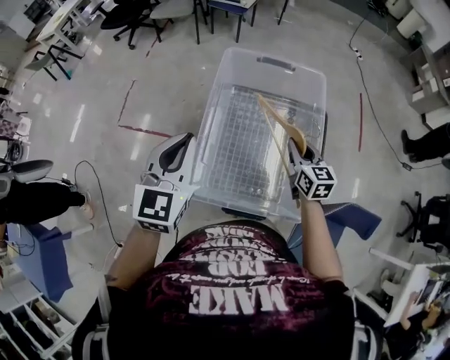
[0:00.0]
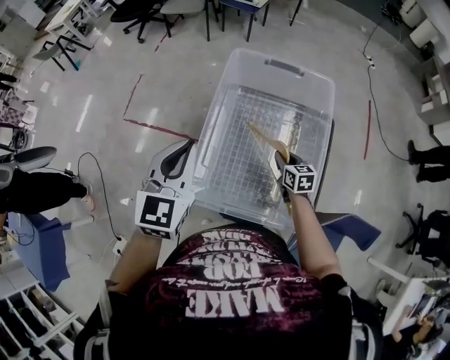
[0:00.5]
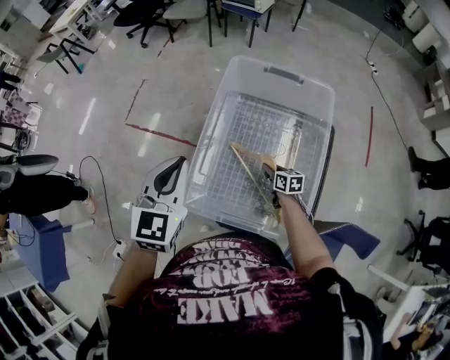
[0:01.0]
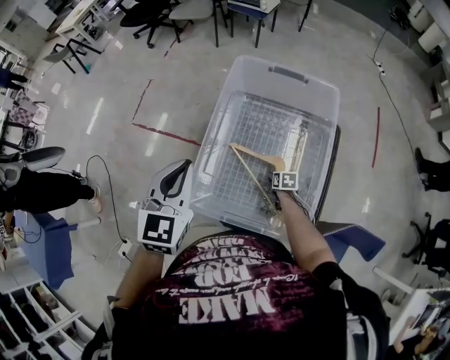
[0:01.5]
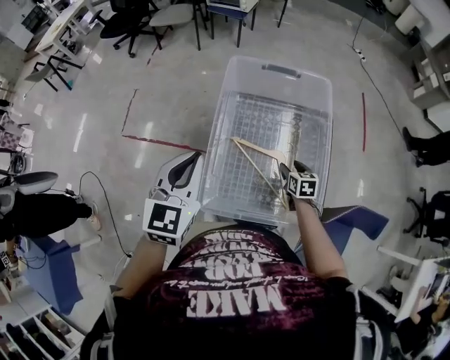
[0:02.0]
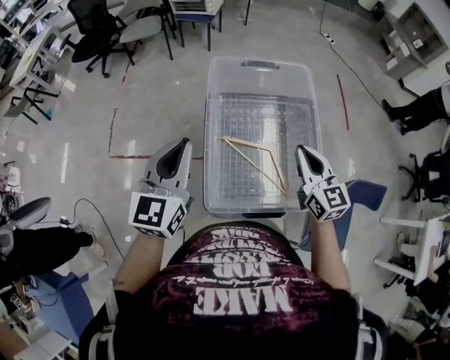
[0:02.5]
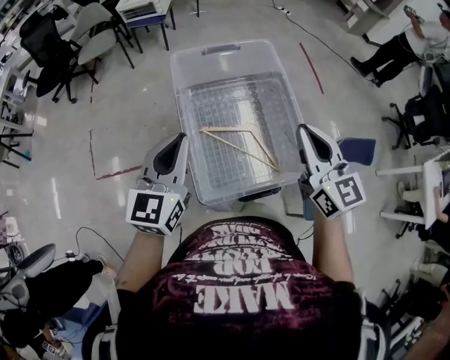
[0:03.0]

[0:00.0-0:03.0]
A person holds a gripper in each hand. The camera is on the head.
0:00.0 to 0:01.5: The right gripper goes about 30 cm downward, angles its fingers downward, by roughly 40 degrees, and opens.
0:01.5 to 0:03.0: The left gripper turns by roughly 30 degrees, while the right gripper is displaced upward by approximately 50 cm, points its fingers about 60 degrees further upward, and closes up.

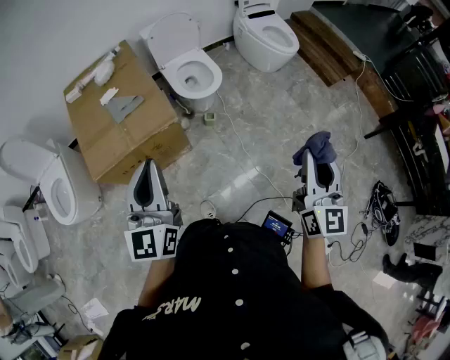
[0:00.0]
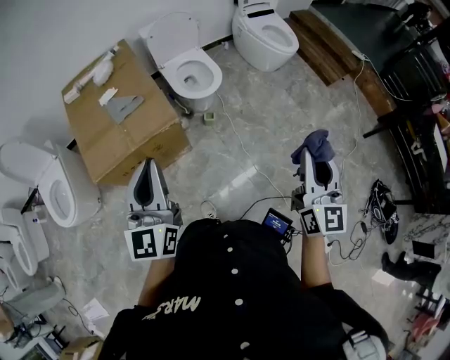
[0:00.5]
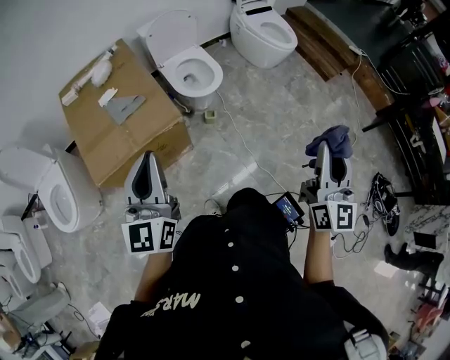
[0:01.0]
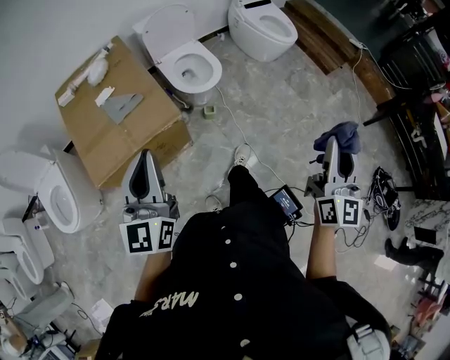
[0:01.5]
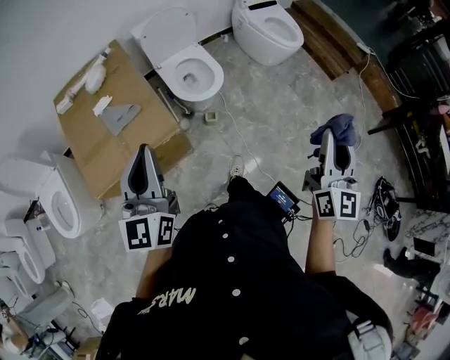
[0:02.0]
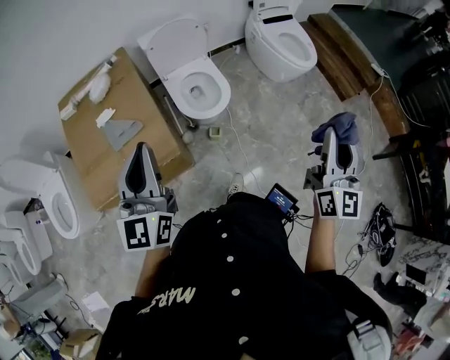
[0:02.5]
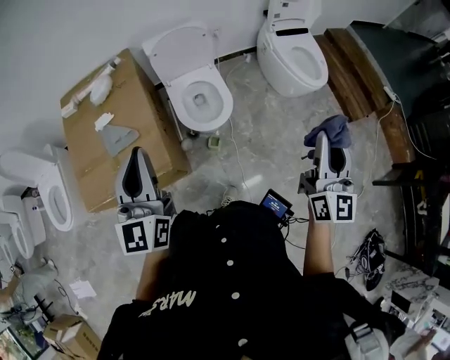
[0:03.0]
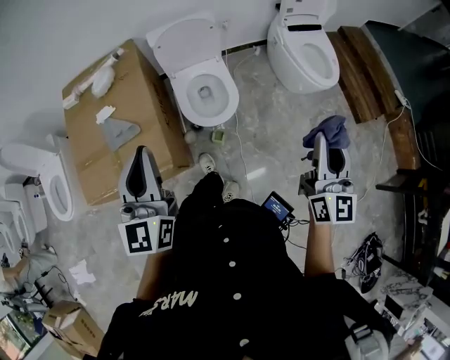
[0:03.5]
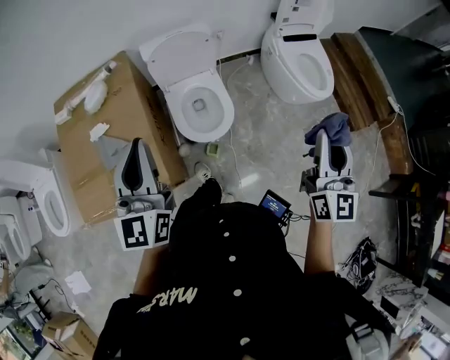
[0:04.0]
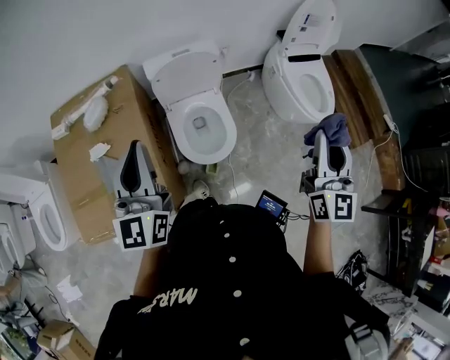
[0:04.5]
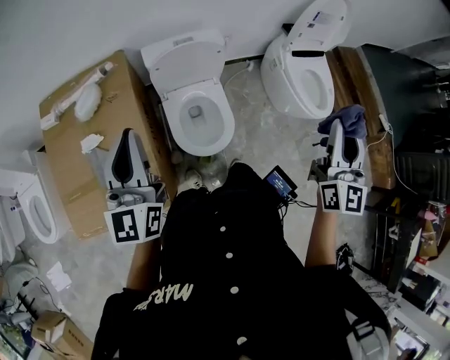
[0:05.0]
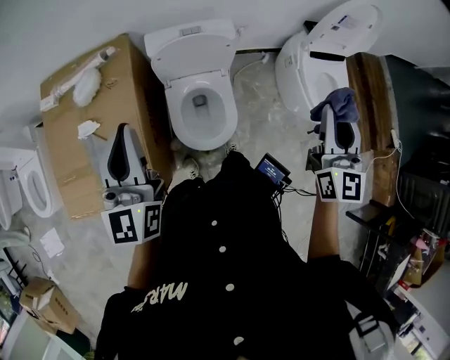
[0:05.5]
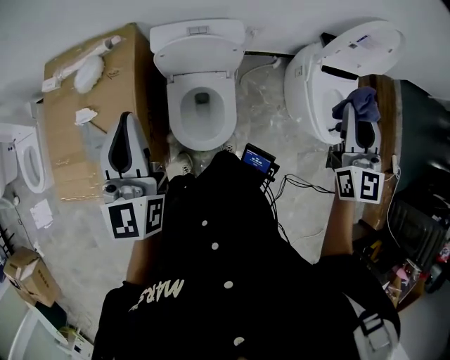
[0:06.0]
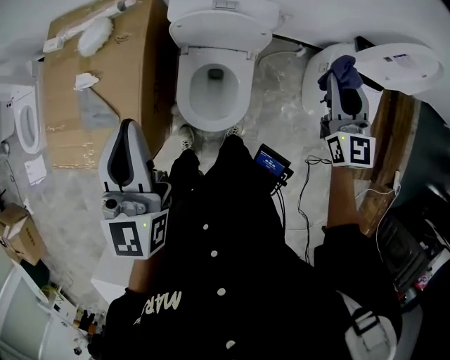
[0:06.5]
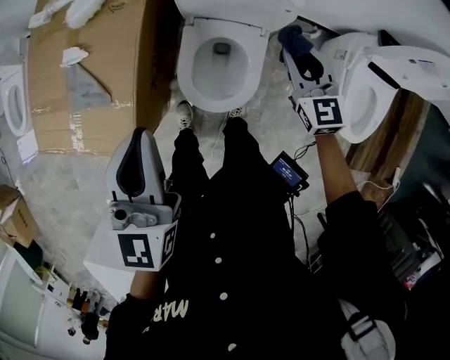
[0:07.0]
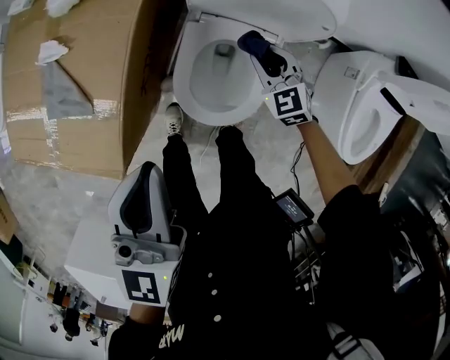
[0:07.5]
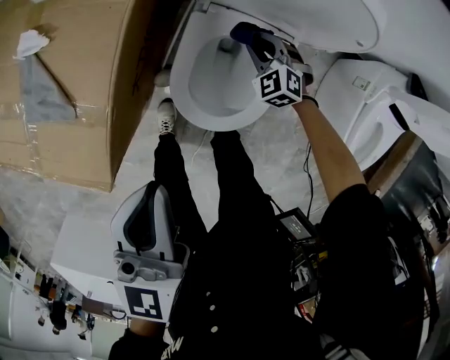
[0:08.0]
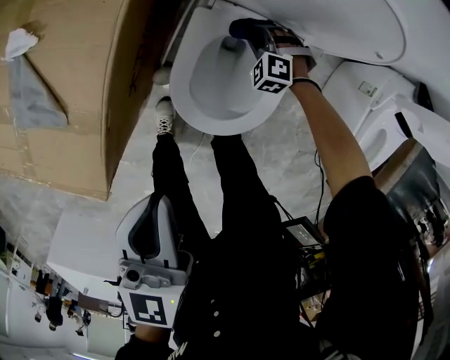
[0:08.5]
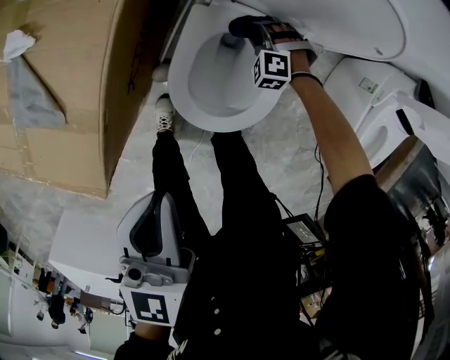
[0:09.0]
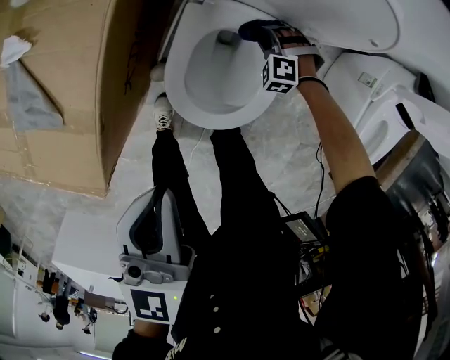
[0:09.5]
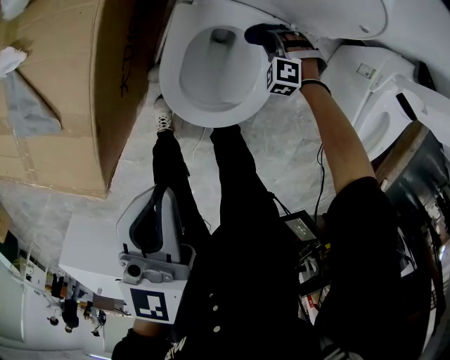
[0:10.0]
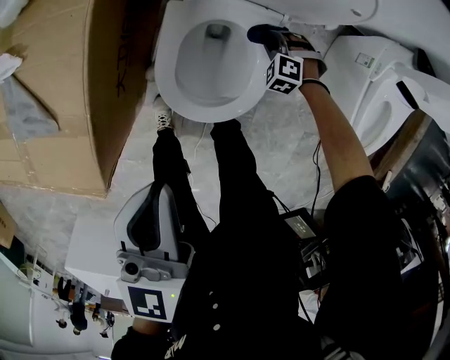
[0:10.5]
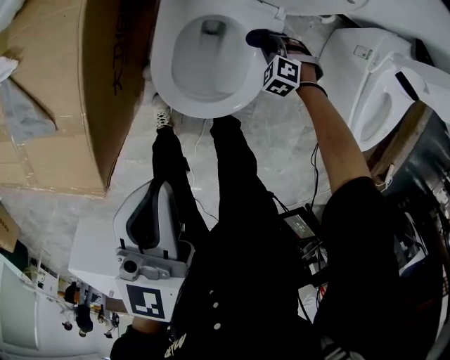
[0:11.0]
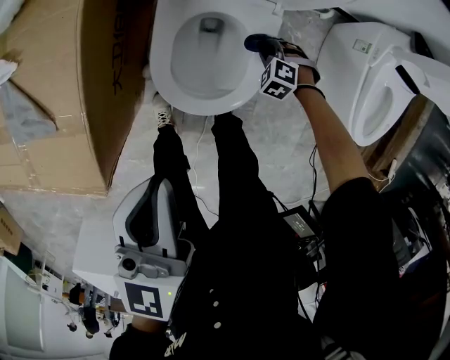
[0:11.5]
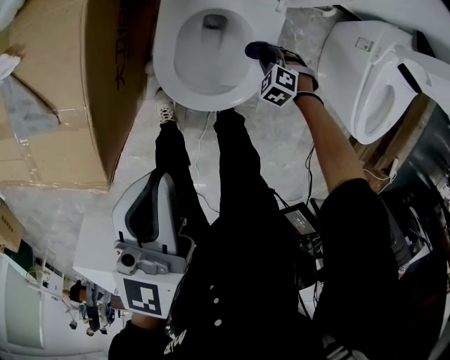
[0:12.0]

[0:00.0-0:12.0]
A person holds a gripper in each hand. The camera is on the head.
0:00.0 to 0:02.0: The two grippers go roughly 15 cm forward.
0:02.0 to 0:04.0: The grippers both shift forward by roughly 35 cm.
0:04.0 to 0:06.0: The left gripper travels forward by roughly 25 cm; the right gripper shifts roughly 40 cm forward, and turns by approximately 20 degrees.
0:06.0 to 0:08.0: The left gripper travels downward by some 25 cm, and rotates approximately 30 degrees. Meanwhile the right gripper is displaced downward by about 60 cm, and tips its fingers downward by approximately 50 degrees.
0:08.0 to 0:10.0: The right gripper is displaced downward and to the right by some 15 cm, and turns by about 30 degrees.
0:10.0 to 0:12.0: The right gripper moves some 15 cm, and swivels roughly 30 degrees.

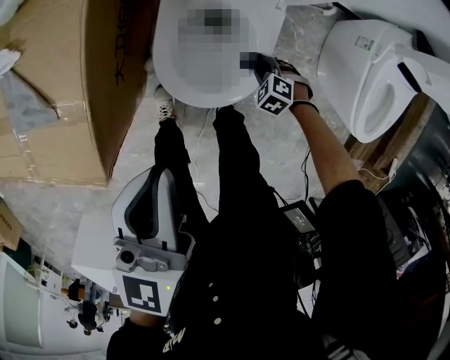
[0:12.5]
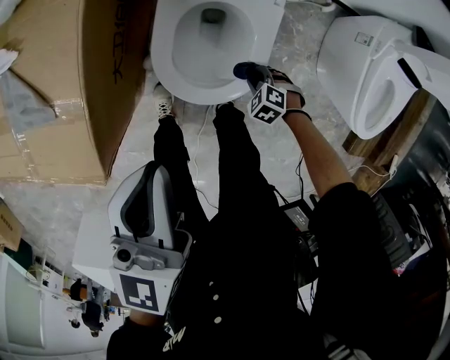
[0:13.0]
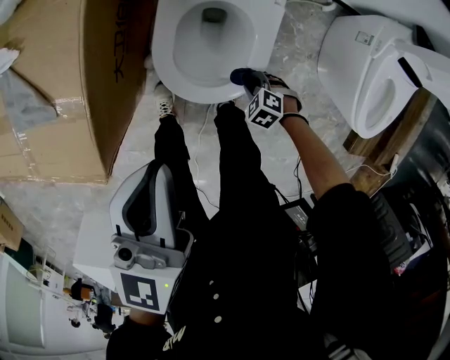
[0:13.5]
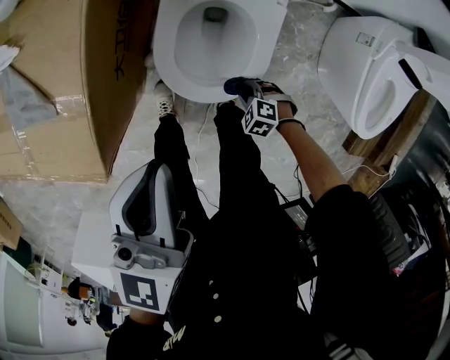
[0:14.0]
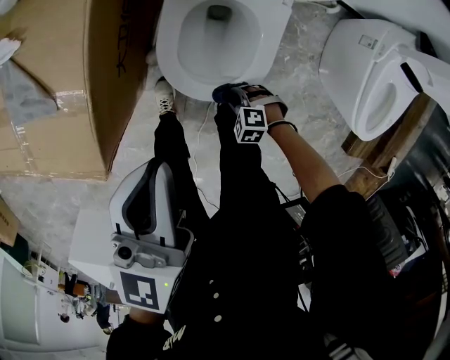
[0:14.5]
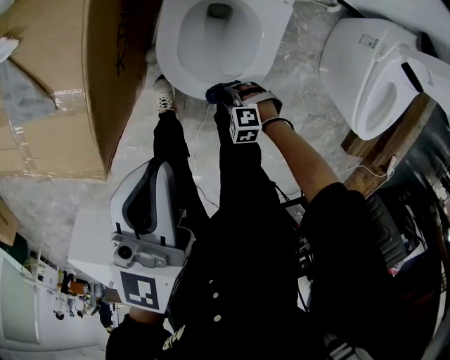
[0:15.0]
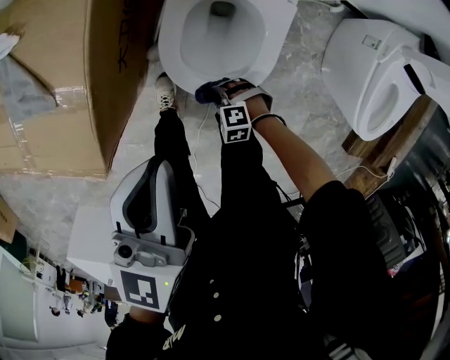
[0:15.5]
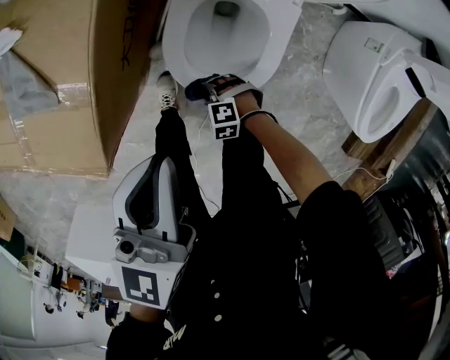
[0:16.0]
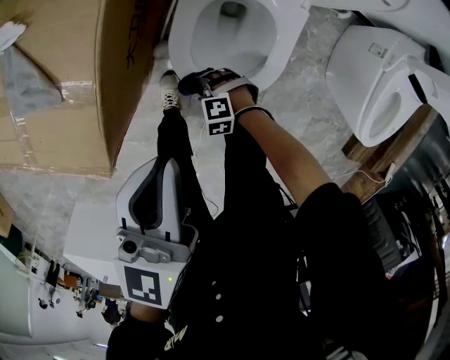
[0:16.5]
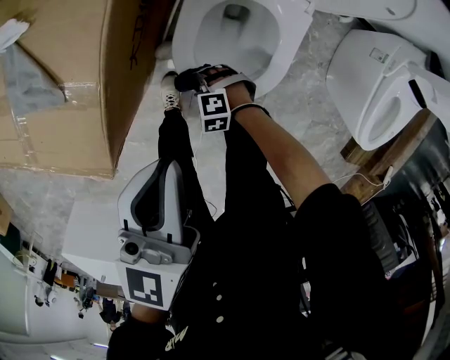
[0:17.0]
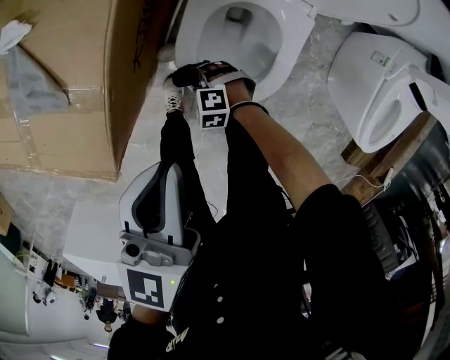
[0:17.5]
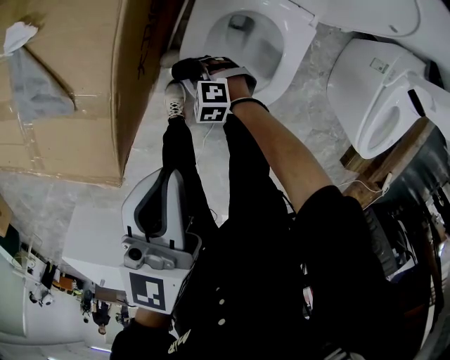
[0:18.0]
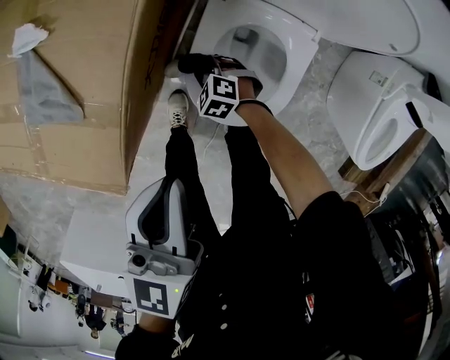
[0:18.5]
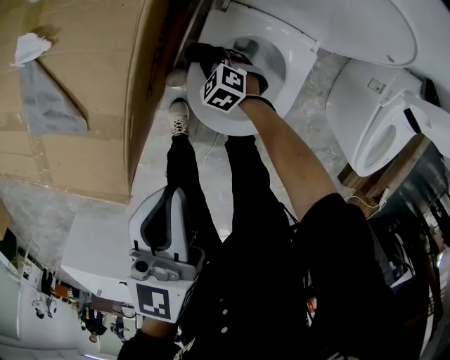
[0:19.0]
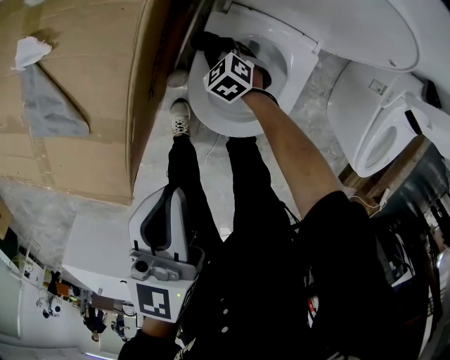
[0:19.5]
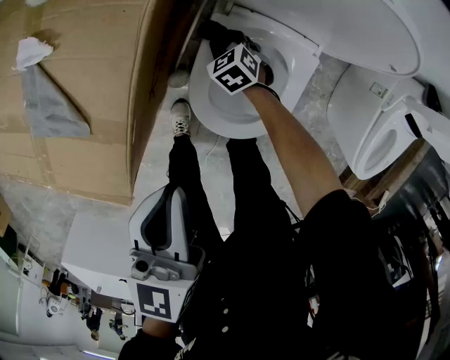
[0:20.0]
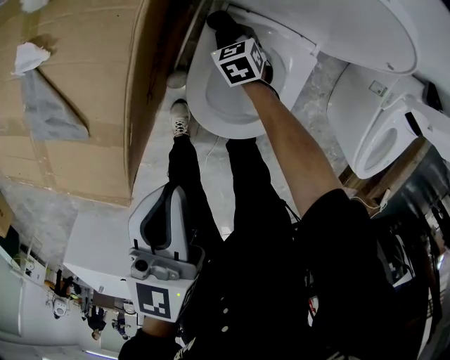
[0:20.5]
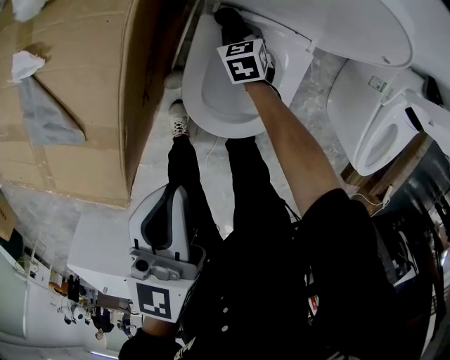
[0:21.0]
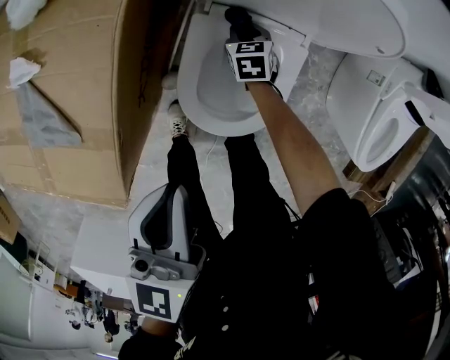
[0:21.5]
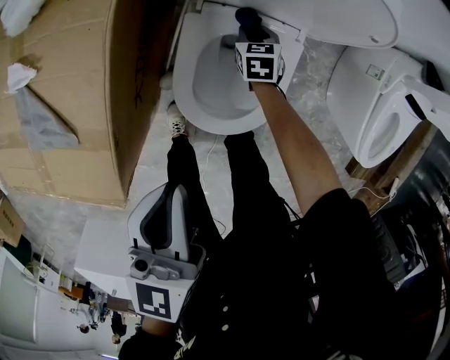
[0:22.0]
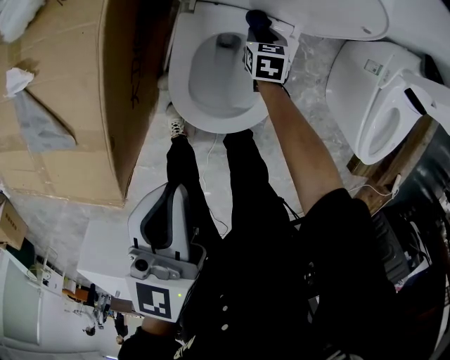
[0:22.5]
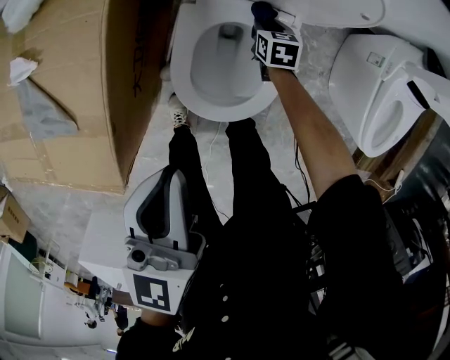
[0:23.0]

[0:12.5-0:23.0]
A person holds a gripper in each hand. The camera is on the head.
0:12.5 to 0:14.5: The right gripper moves some 15 cm, and changes its angle by approximately 20 degrees.
0:14.5 to 0:16.5: The right gripper moves forward and to the left, some 15 cm.
0:16.5 to 0:19.0: The right gripper travels forward and to the right by about 20 cm, and changes its angle by roughly 30 degrees; the left gripper moves roughly 5 cm.
0:19.0 to 0:21.0: The right gripper moves to the right and forward, about 15 cm, and turns by roughly 40 degrees.
0:21.0 to 0:23.0: The right gripper moves to the right, some 15 cm, and changes its angle by approximately 20 degrees, while the left gripper ends up approximately 5 cm from where it was.

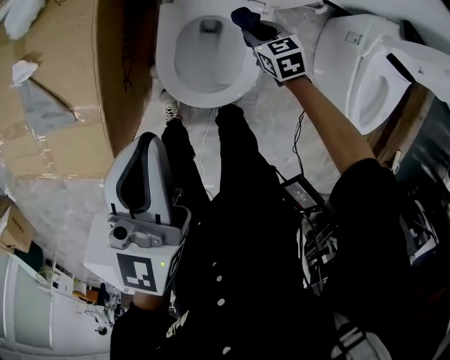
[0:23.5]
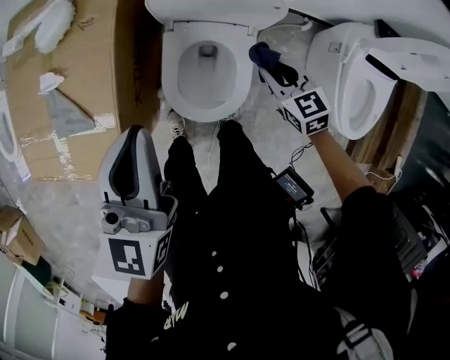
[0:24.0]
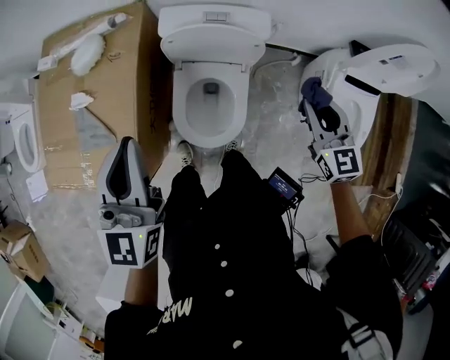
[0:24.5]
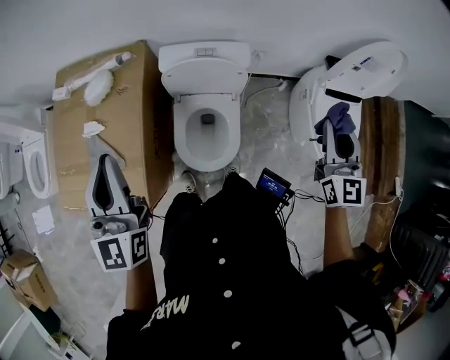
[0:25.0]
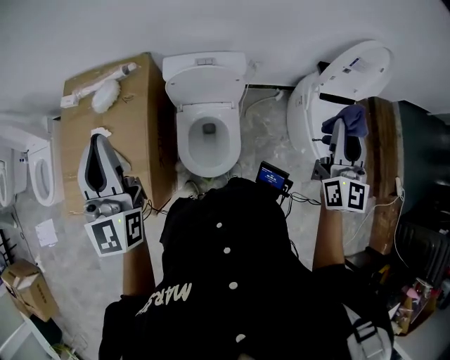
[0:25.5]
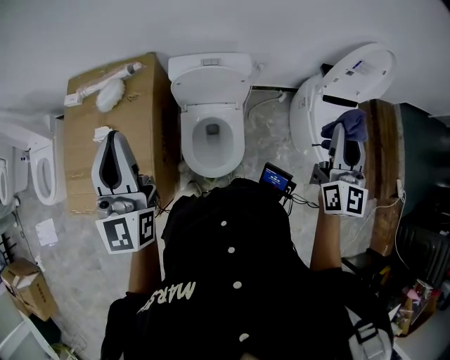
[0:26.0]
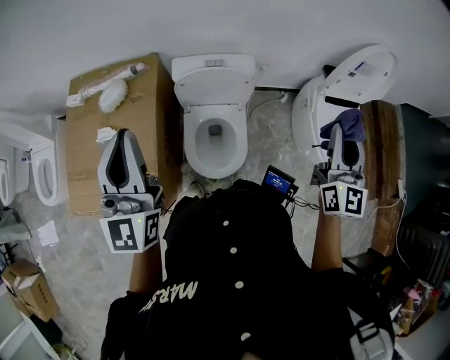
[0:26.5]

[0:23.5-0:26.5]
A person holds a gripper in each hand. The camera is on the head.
0:23.5 to 0:25.0: The right gripper moves upward, approximately 50 cm, and tilts its fingers about 50 degrees upward. Meanwhile the left gripper goes approximately 25 cm upward, and rotates roughly 30 degrees.
0:25.0 to 0:26.5: The grippers both shift upward by some 5 cm.
